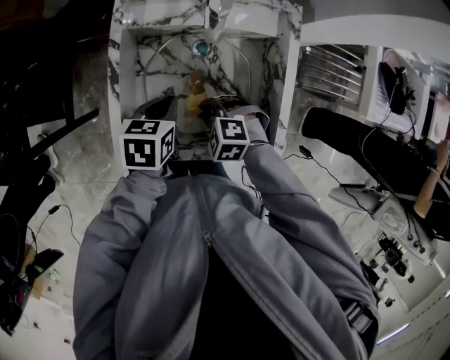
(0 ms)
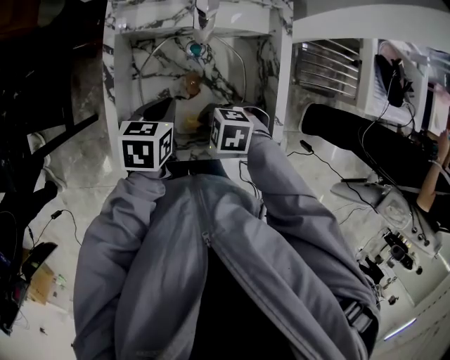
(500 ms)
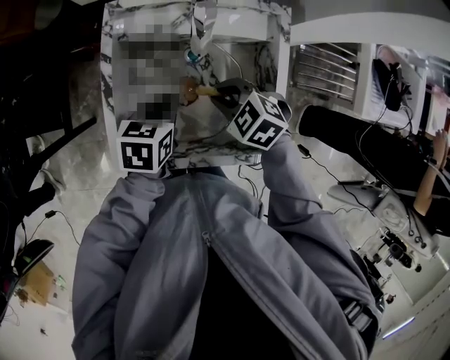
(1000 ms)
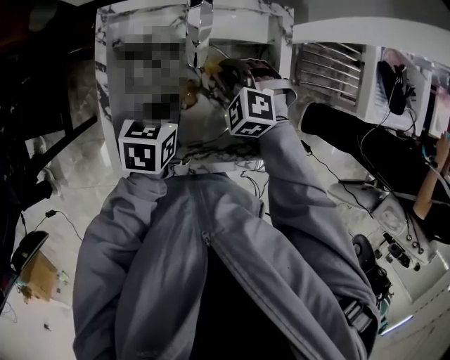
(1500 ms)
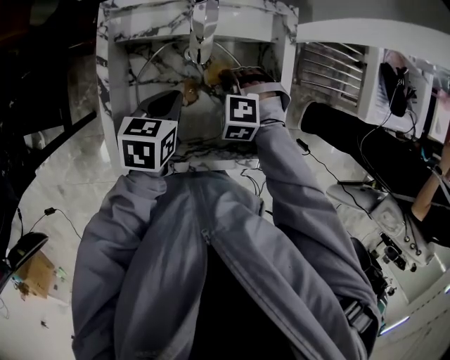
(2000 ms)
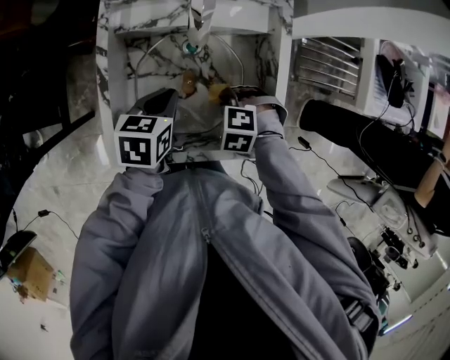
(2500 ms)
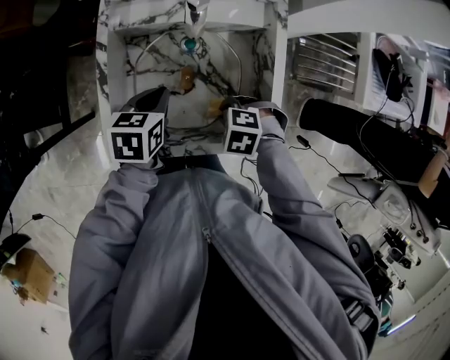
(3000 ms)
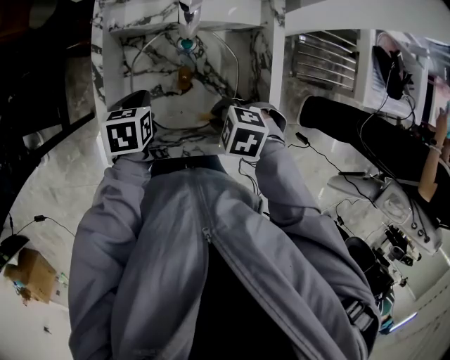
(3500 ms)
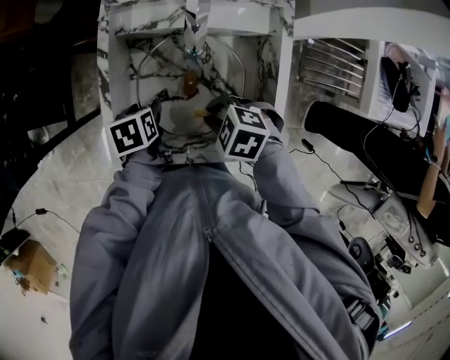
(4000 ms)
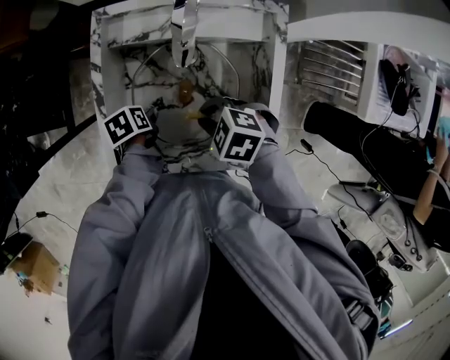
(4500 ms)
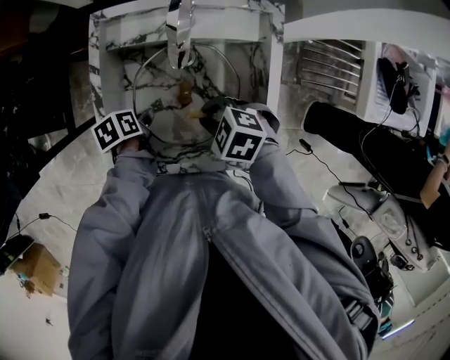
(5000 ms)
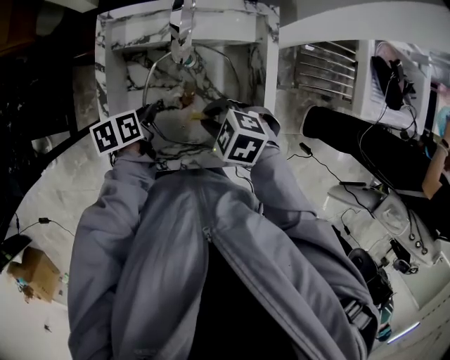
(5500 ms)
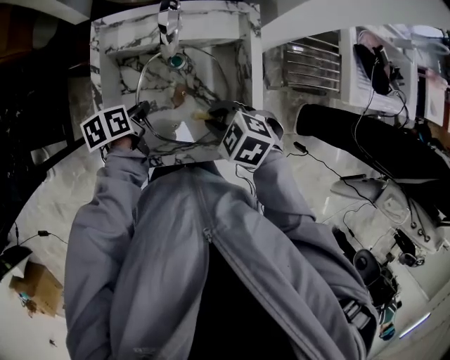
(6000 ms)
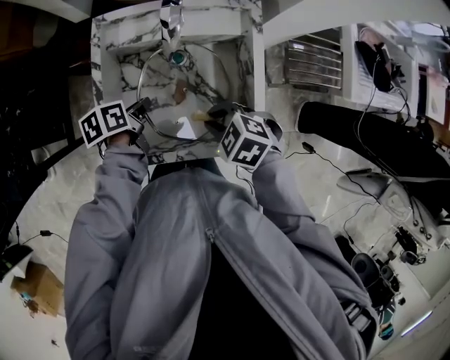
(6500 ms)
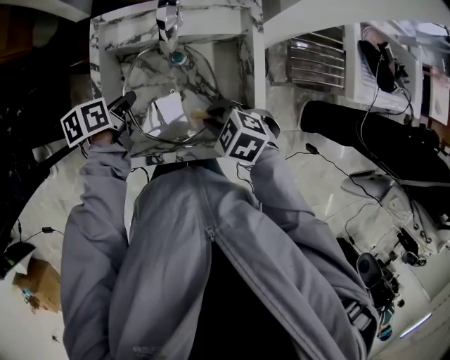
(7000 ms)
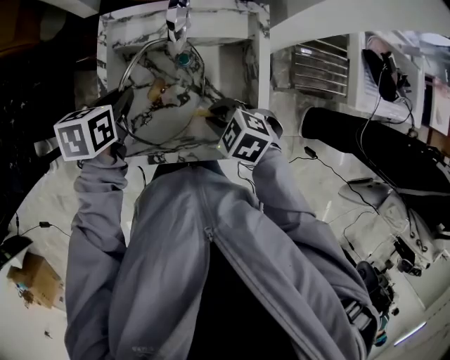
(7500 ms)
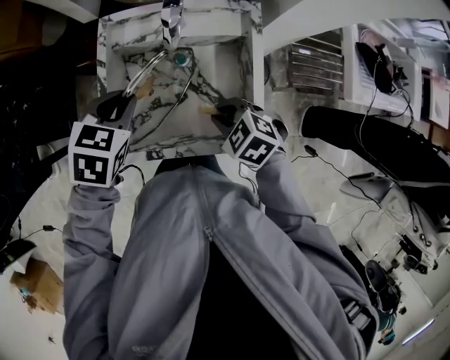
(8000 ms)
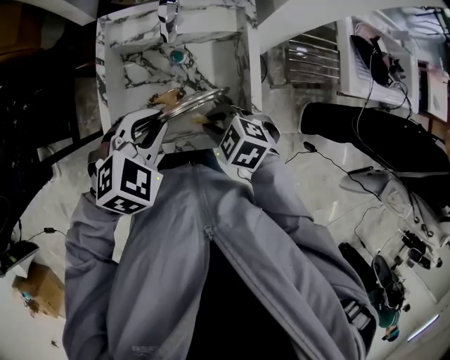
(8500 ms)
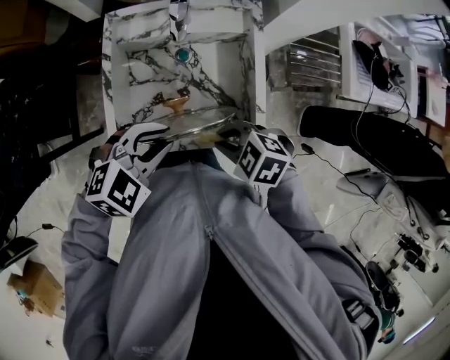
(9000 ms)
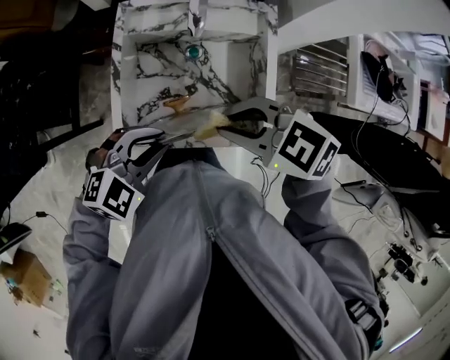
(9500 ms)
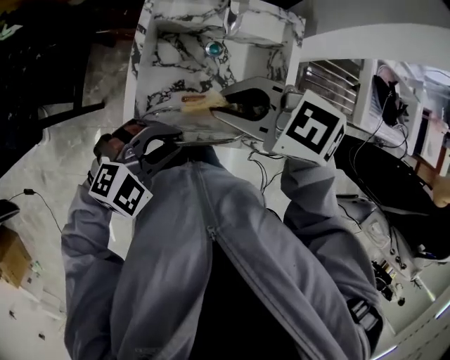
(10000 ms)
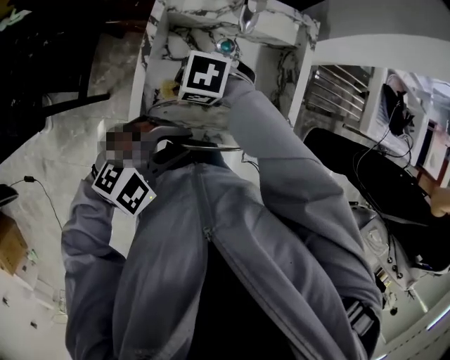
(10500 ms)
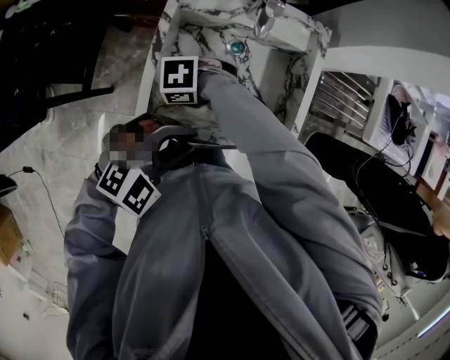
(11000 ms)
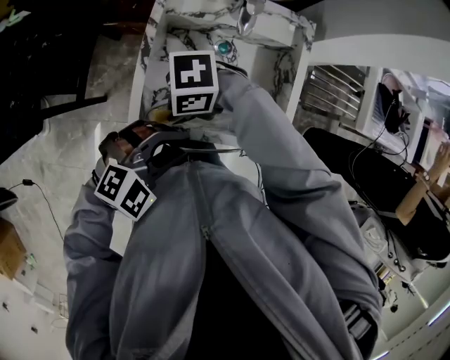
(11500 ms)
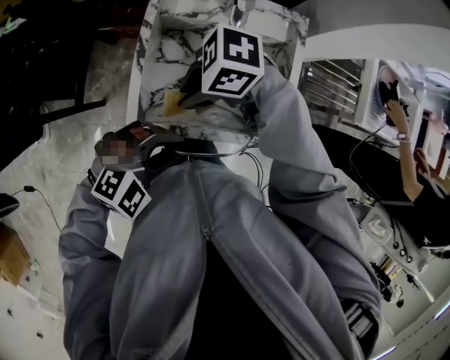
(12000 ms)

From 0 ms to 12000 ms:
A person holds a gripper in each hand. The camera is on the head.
From 0 ms to 2000 ms: The left gripper shifts by roughly 5 cm, while the right gripper moves some 10 cm upward and comes back.
From 2000 ms to 4000 ms: The right gripper ends up approximately 15 cm from where it was, and turns by roughly 40 degrees. Meanwhile the left gripper changes place by approximately 10 cm, swivels roughly 30 degrees, and opens up.
From 4000 ms to 6000 ms: The left gripper ends up approximately 5 cm from where it was, rotates roughly 20 degrees, and closes up, while the right gripper heads upward, covering roughly 5 cm.
From 6000 ms to 8000 ms: The left gripper travels upward by roughly 15 cm, and rolls clockwise, seen from behind, by some 60 degrees.
From 8000 ms to 10000 ms: The left gripper ends up some 15 cm from where it was, and changes its angle by some 50 degrees. The right gripper travels upward by roughly 15 cm, and turns by about 30 degrees.
From 10000 ms to 12000 ms: The right gripper reaches about 25 cm downward, then returns, and rotates roughly 40 degrees.

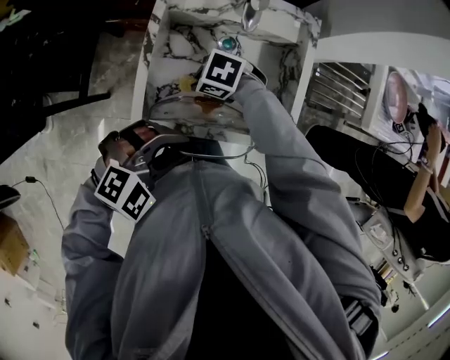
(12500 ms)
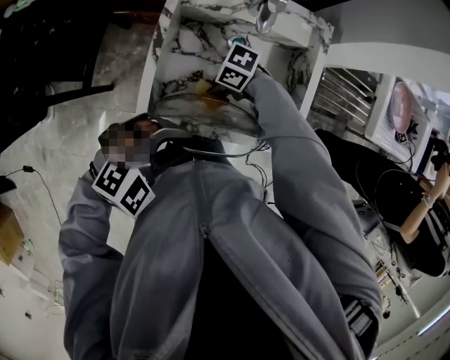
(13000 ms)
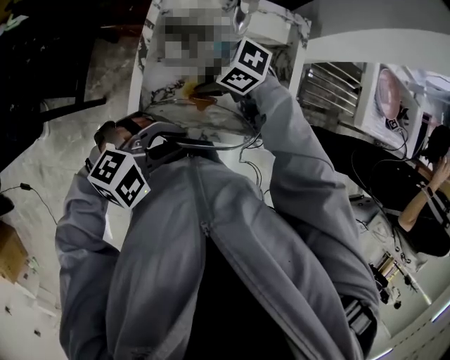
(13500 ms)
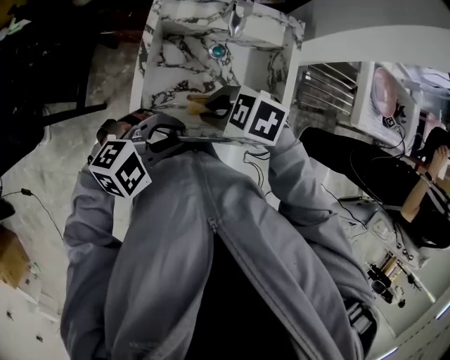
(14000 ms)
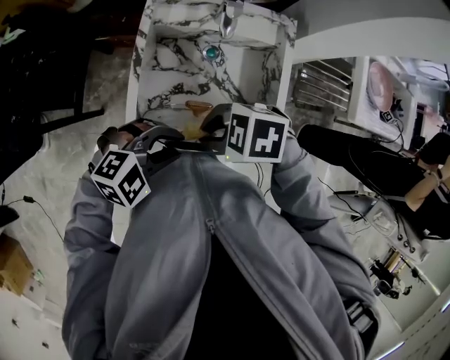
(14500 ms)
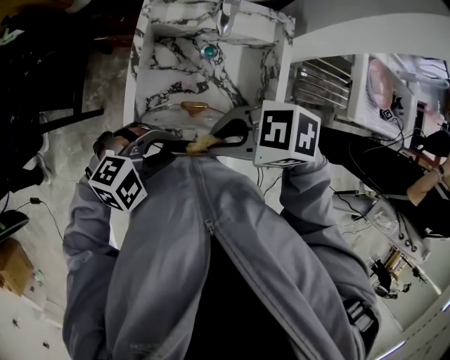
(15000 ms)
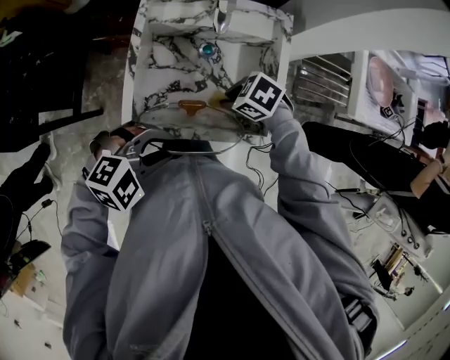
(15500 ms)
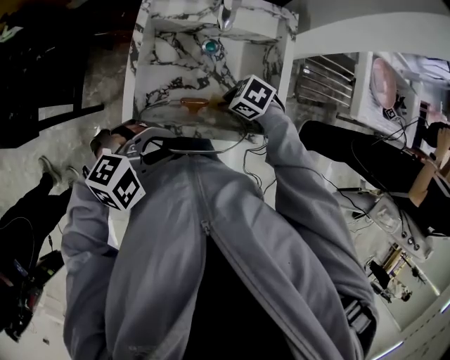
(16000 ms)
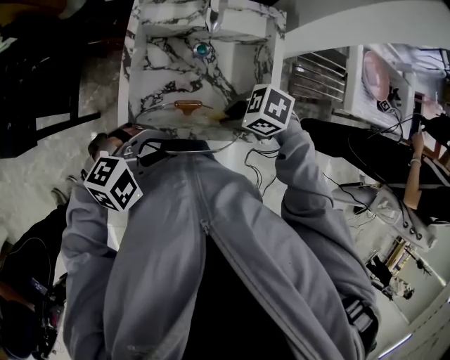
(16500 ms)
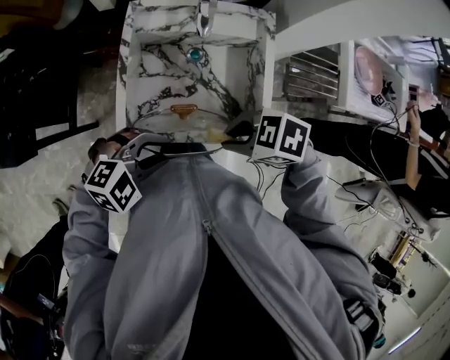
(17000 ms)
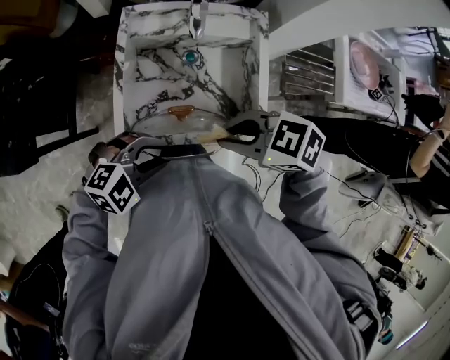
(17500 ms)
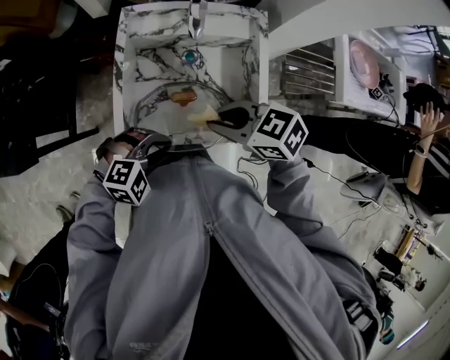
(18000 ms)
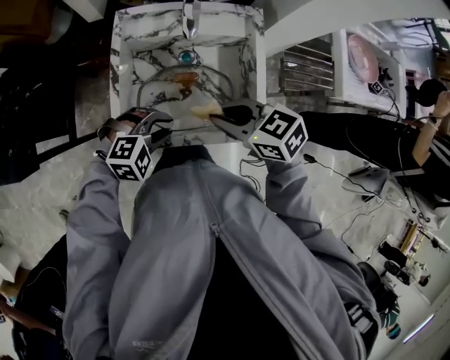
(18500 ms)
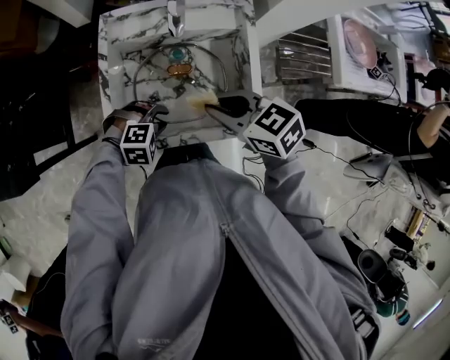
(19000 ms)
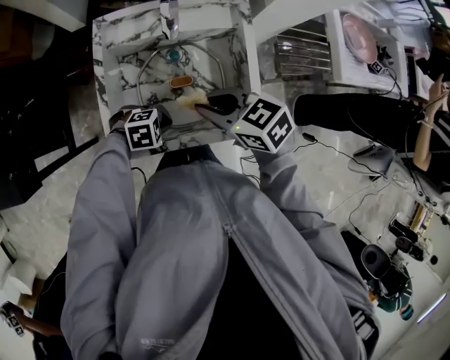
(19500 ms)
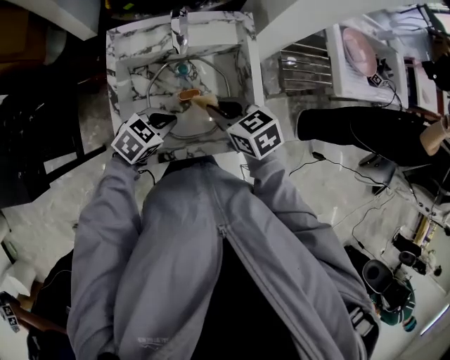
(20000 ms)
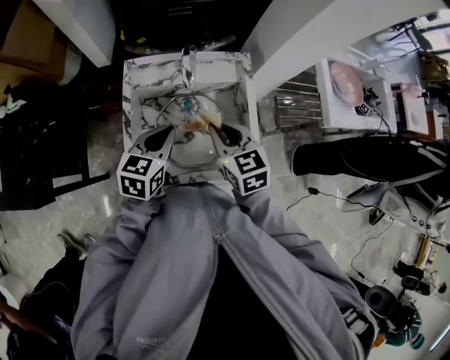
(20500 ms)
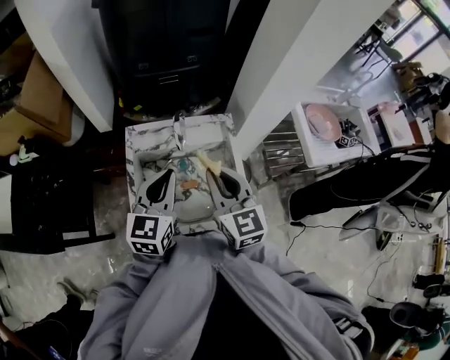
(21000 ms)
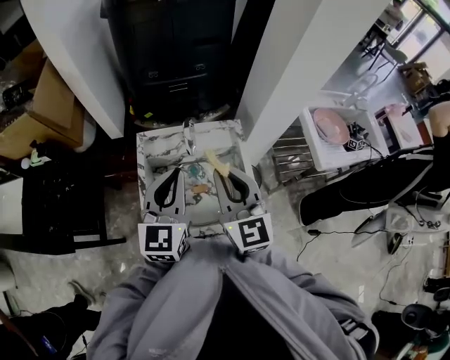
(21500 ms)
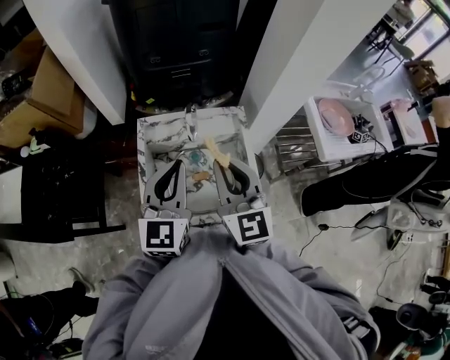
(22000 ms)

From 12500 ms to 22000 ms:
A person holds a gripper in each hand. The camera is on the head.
From 12500 ms to 14500 ms: The right gripper goes roughly 15 cm upward.
From 14500 ms to 16500 ms: The right gripper swings up and down, some 25 cm each way, with 2 reversals.
From 16500 ms to 18000 ms: The left gripper heads downward, covering roughly 5 cm, while the right gripper heads upward, covering some 10 cm, and rotates some 30 degrees.
From 18000 ms to 20000 ms: The left gripper moves about 10 cm downward and comes back, rolls counterclockwise, seen from behind, by about 40 degrees, and closes up. Meanwhile the right gripper moves approximately 10 cm, and rotates approximately 30 degrees.
From 20000 ms to 22000 ms: The grippers both shift upward by about 30 cm. The left gripper tips its fingers upward by about 40 degrees. The right gripper tilts its fingers roughly 40 degrees upward.

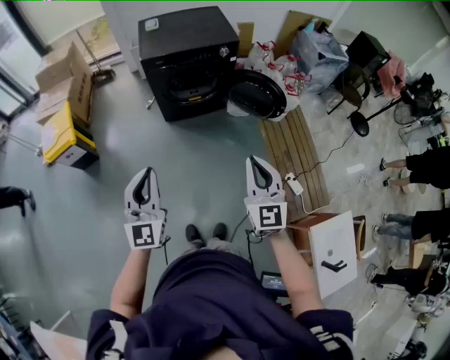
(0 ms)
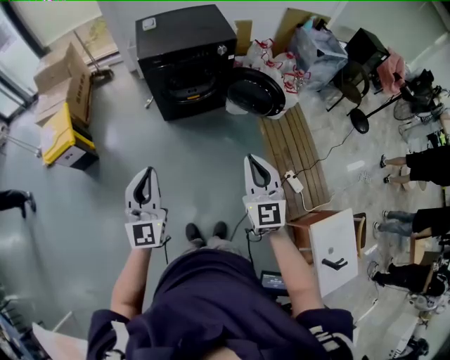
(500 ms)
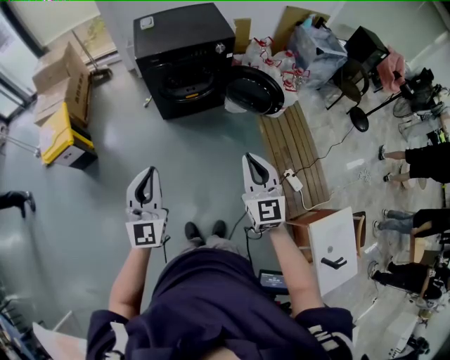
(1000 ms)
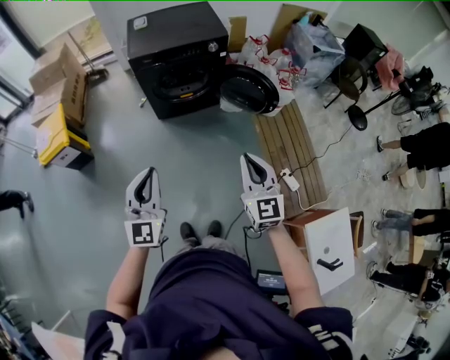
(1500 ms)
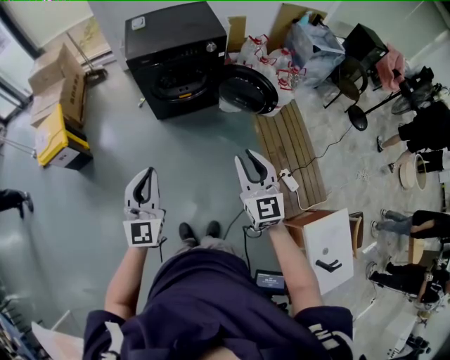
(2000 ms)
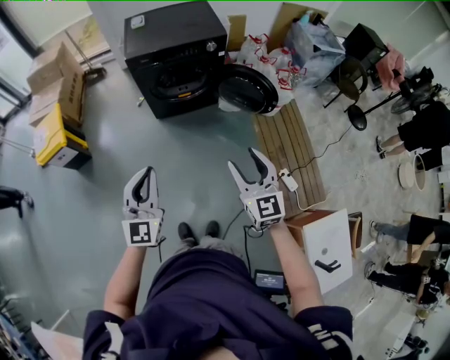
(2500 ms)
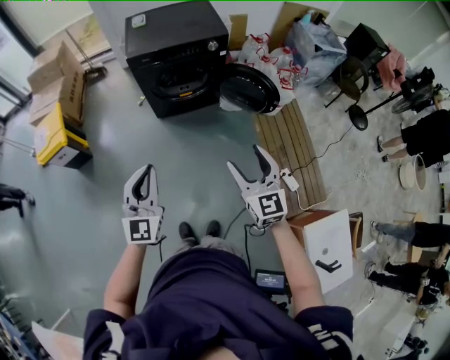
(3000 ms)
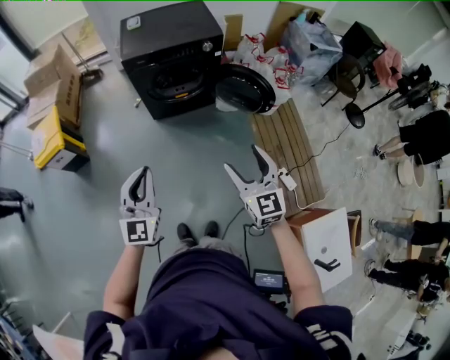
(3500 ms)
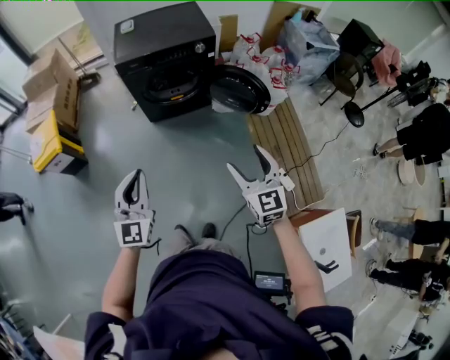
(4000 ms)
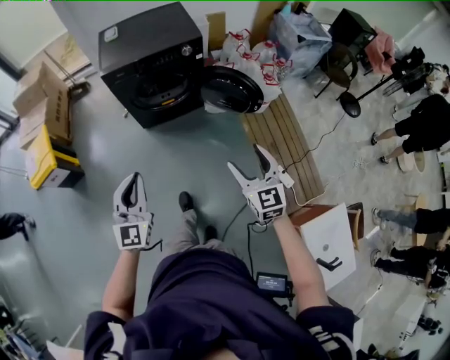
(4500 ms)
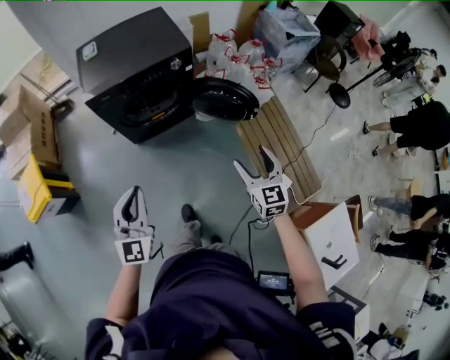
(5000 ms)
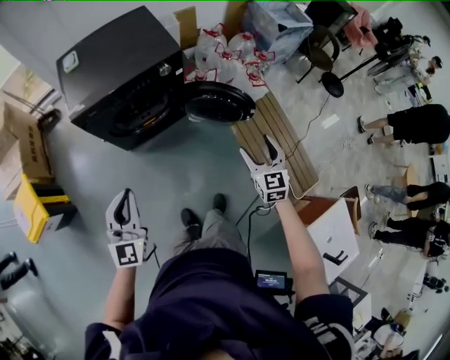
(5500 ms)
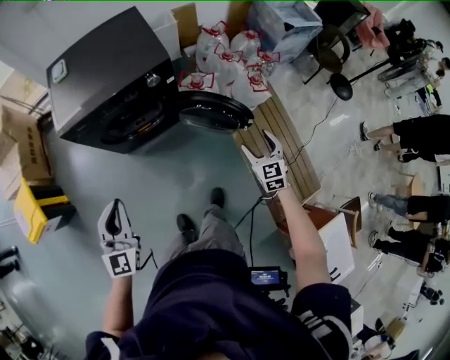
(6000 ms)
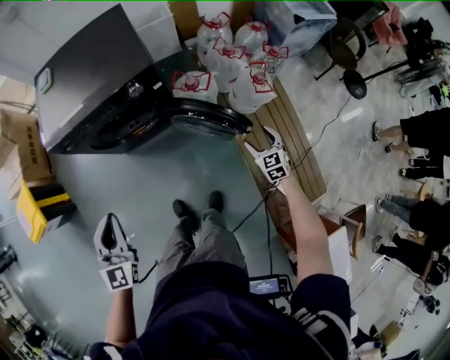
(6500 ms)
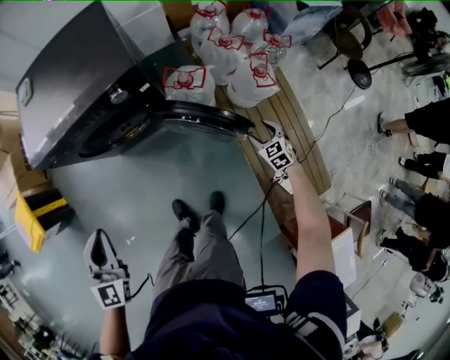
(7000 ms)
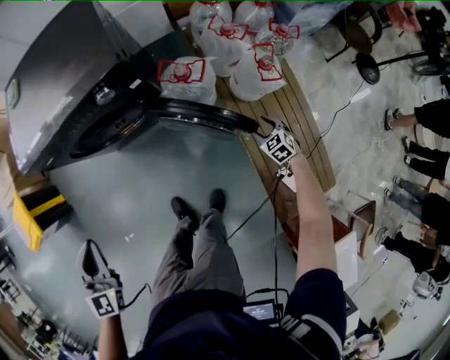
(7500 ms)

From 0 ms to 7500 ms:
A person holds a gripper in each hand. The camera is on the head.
From 0 ms to 2000 ms: The grippers both shift to the right by about 5 cm.
From 2000 ms to 4000 ms: The right gripper moves about 5 cm, and opens its fingers.
From 4000 ms to 5500 ms: The grippers both shift forward by roughly 30 cm. The right gripper rotates about 20 degrees.
From 5500 ms to 7500 ms: The right gripper is displaced downward, to the right and forward by approximately 60 cm, and angles its fingers downward, by approximately 30 degrees, while the left gripper travels forward, downward and to the right by about 25 cm, and turns by roughly 30 degrees.
